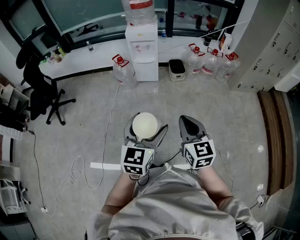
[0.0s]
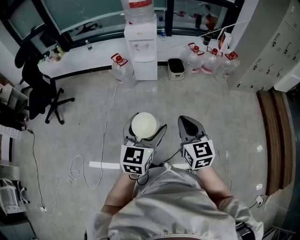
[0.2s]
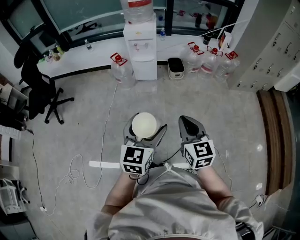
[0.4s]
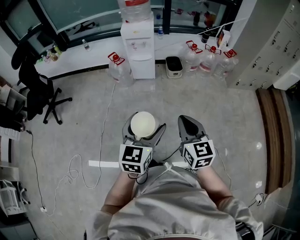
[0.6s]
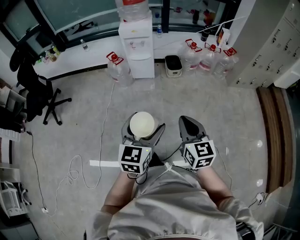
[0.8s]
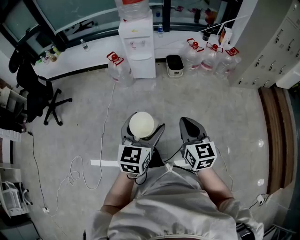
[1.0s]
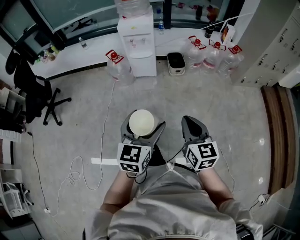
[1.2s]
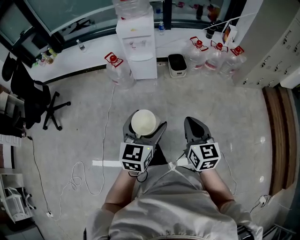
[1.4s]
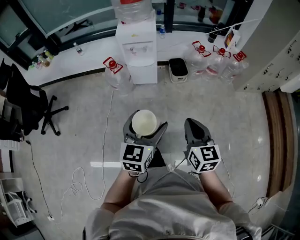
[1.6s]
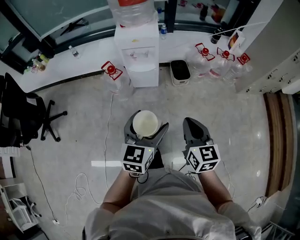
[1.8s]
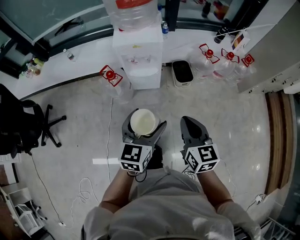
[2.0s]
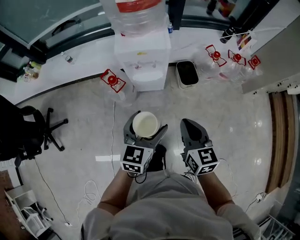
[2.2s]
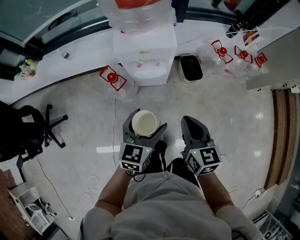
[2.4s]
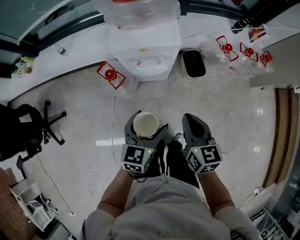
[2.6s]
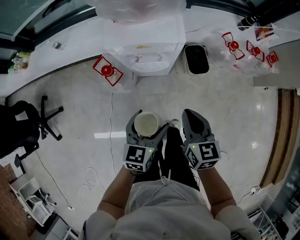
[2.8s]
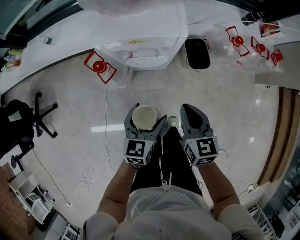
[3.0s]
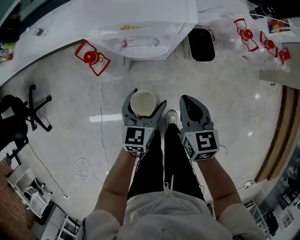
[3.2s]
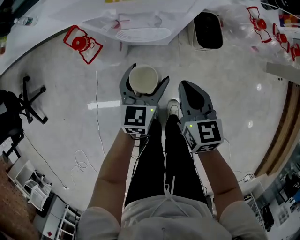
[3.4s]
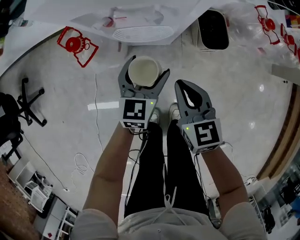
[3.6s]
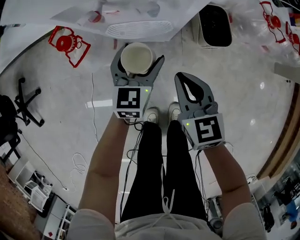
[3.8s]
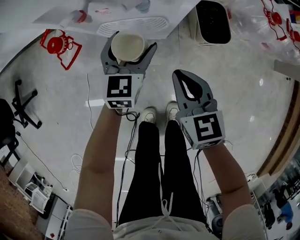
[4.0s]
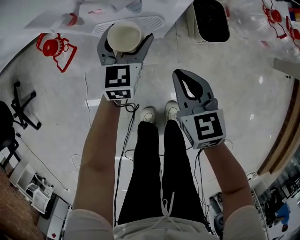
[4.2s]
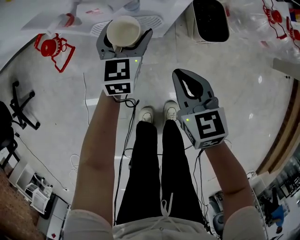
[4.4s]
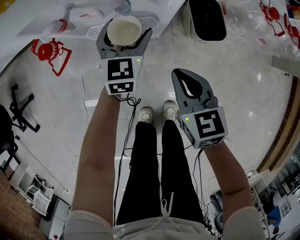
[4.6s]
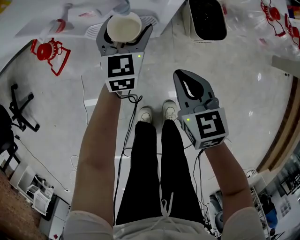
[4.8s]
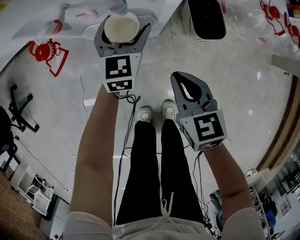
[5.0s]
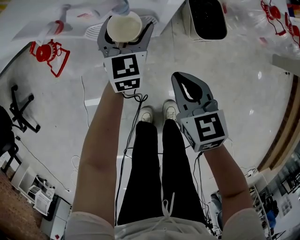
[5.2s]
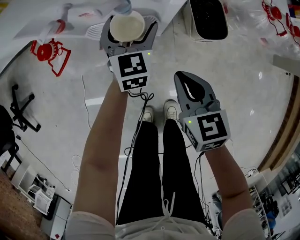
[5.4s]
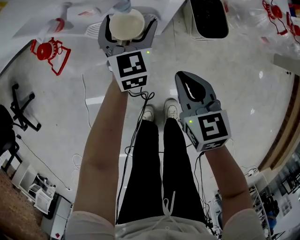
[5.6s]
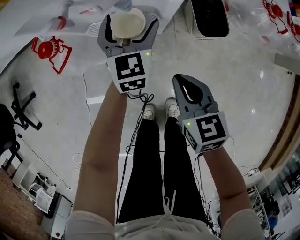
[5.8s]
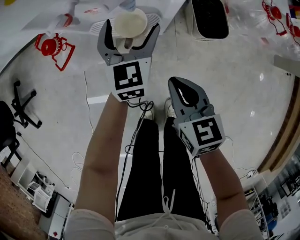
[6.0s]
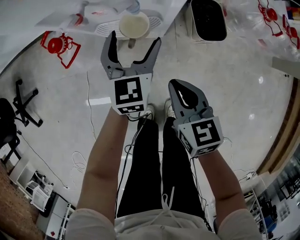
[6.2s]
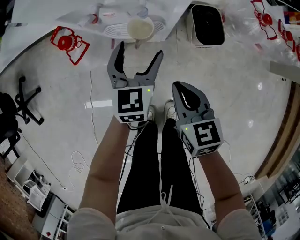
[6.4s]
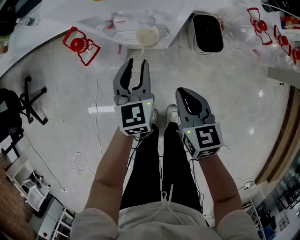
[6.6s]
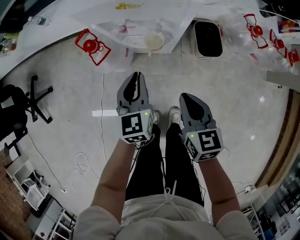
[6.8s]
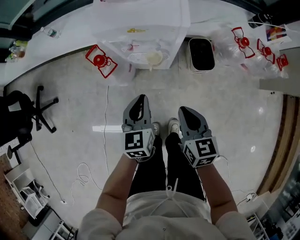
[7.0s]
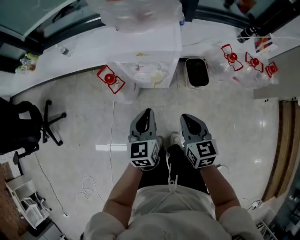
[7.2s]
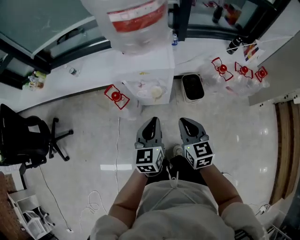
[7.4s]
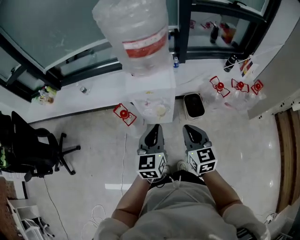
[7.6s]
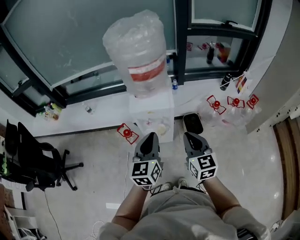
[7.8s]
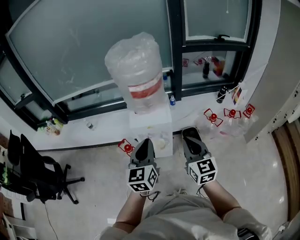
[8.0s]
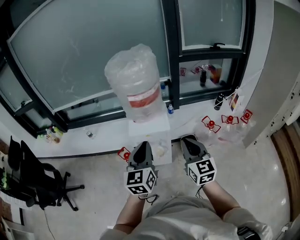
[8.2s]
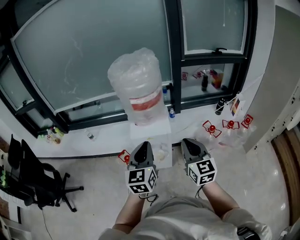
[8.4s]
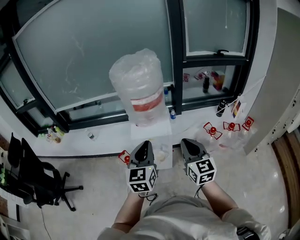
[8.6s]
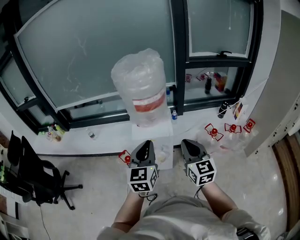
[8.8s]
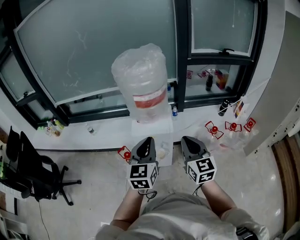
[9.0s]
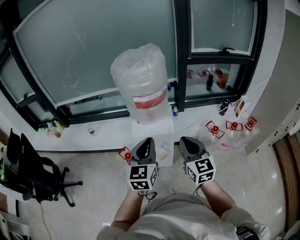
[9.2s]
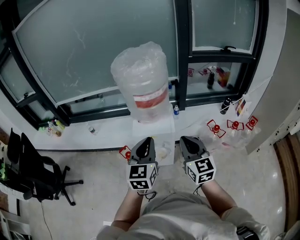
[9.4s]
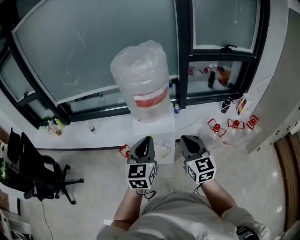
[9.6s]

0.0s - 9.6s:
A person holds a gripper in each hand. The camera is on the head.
0.0s - 1.6s: Both grippers move forward, approximately 20 cm.
1.6s - 3.2s: The two grippers travel together, forward, some 40 cm. The two grippers go approximately 25 cm downward.
3.2s - 4.8s: The left gripper goes approximately 25 cm forward and downward; the right gripper moves downward, about 15 cm.
4.8s - 6.4s: The right gripper heads upward, covering some 5 cm. Meanwhile the left gripper is displaced backward and upward by about 15 cm.
6.4s - 8.0s: Both grippers move upward, approximately 50 cm. The right gripper tilts its fingers some 30 degrees upward. Meanwhile the left gripper turns by some 20 degrees, and closes its fingers.
8.0s - 9.6s: Both grippers travel together forward, some 5 cm.

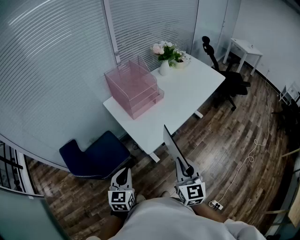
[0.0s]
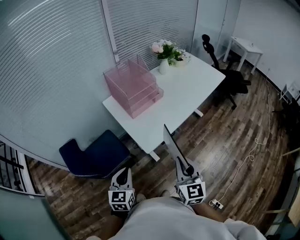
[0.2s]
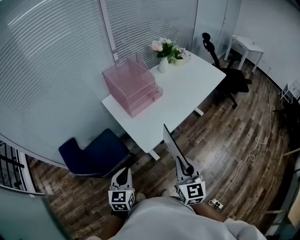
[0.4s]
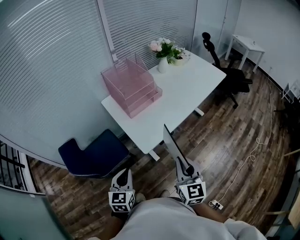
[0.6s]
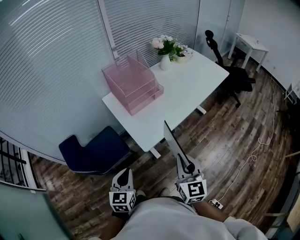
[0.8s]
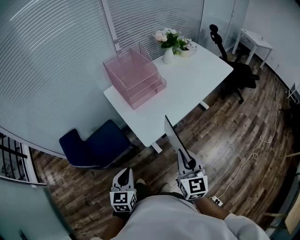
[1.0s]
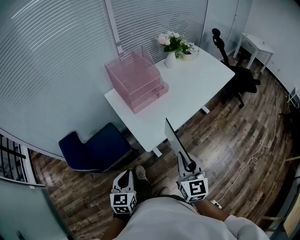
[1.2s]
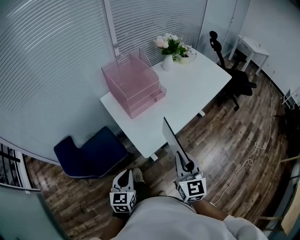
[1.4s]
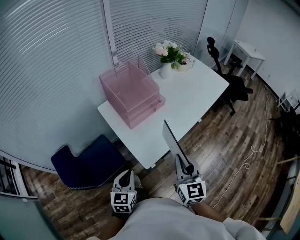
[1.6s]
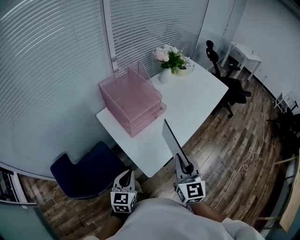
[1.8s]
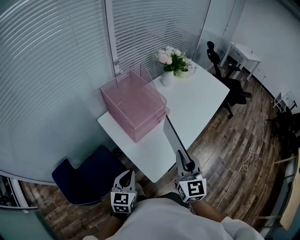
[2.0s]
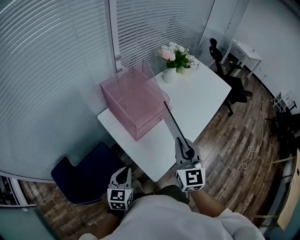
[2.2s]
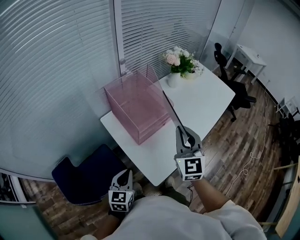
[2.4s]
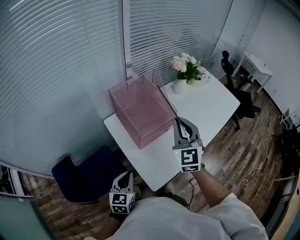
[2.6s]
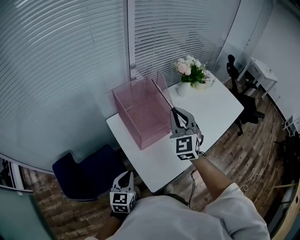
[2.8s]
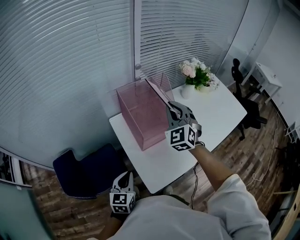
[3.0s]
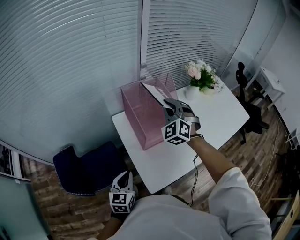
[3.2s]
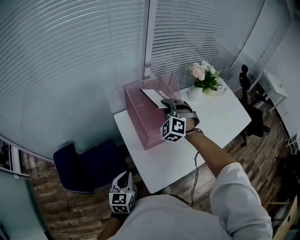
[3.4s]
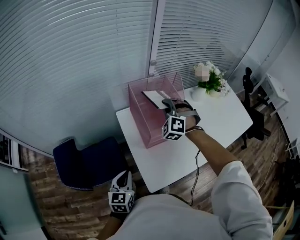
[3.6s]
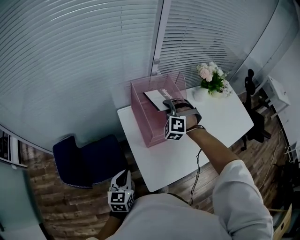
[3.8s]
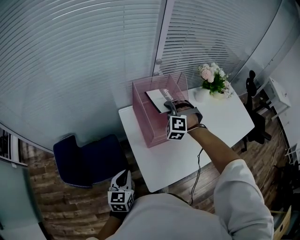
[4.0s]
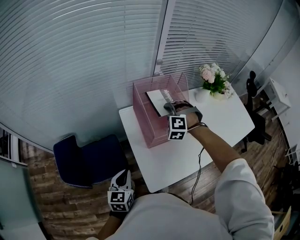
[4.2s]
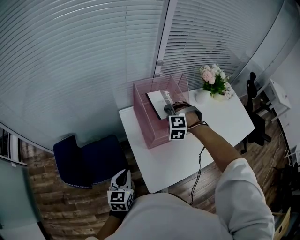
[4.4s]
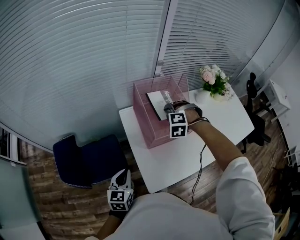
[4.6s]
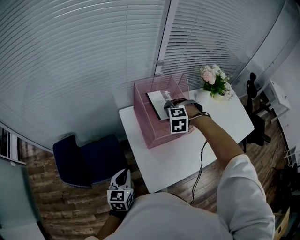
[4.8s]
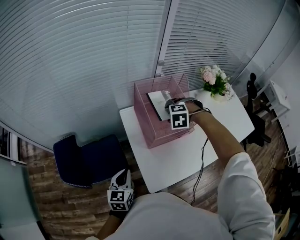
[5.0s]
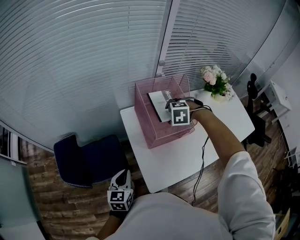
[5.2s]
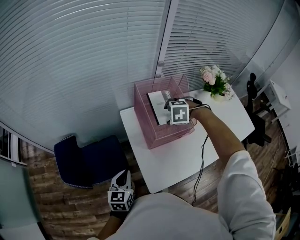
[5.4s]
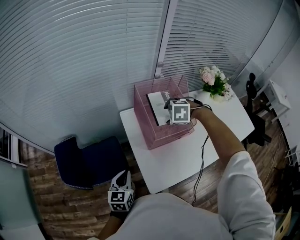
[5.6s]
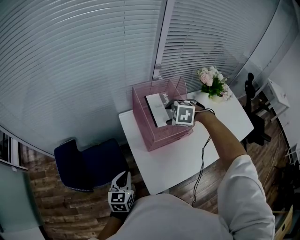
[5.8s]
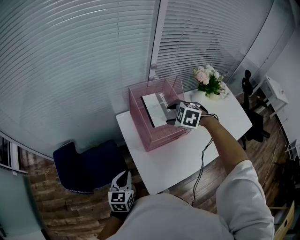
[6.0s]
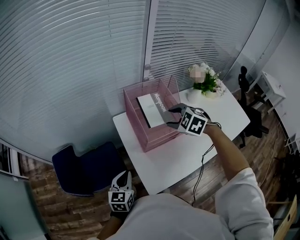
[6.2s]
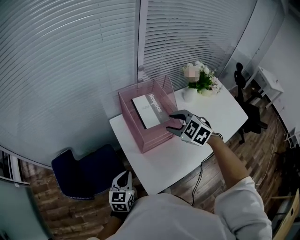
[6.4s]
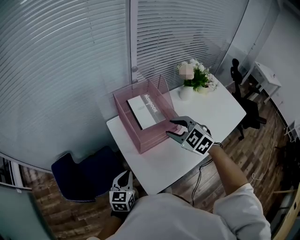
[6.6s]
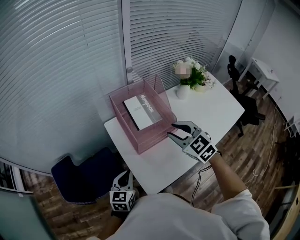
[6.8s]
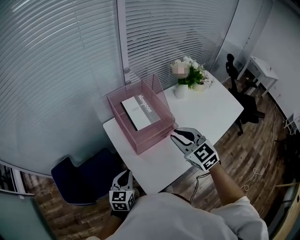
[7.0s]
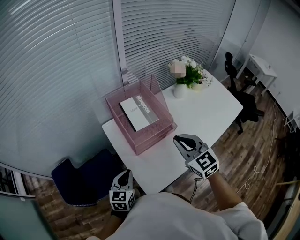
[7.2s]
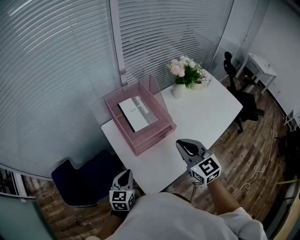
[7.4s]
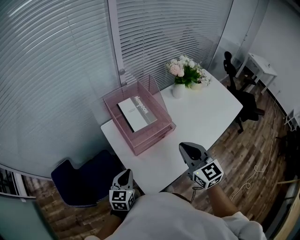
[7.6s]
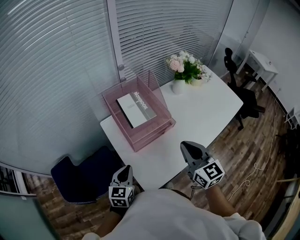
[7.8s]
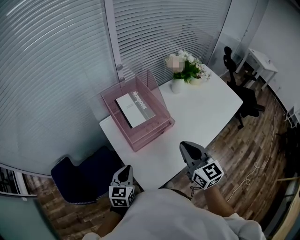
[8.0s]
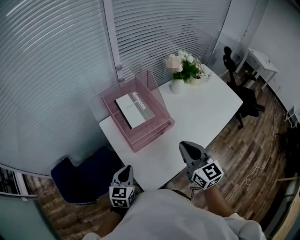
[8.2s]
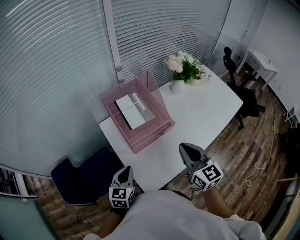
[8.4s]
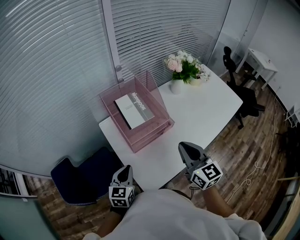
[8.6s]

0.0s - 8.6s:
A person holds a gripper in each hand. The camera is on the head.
0.0s - 1.4s: The right gripper travels forward by about 10 cm; the left gripper travels forward and downward by some 10 cm.
1.4s - 2.8s: The right gripper is displaced forward by about 35 cm, and rotates about 30 degrees; the left gripper goes some 20 cm forward.
2.8s - 4.4s: The left gripper ends up approximately 5 cm from where it was, while the right gripper moves downward, forward and to the left, roughly 20 cm, and points its fingers approximately 40 degrees further downward.
4.4s - 5.8s: The right gripper swivels some 30 degrees, and opens its fingers.
5.8s - 7.2s: The left gripper is displaced to the right by some 10 cm; the right gripper travels backward, upward and to the right by approximately 20 cm, tilts its fingers roughly 50 degrees upward, and closes up.
7.2s - 8.6s: The right gripper shifts by roughly 5 cm, and rotates about 20 degrees.

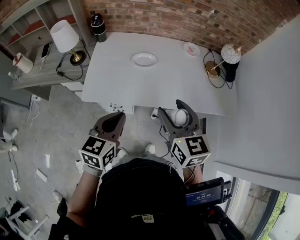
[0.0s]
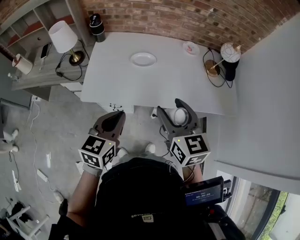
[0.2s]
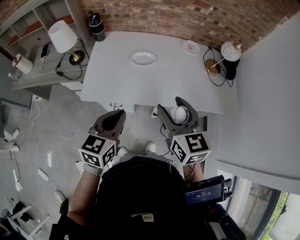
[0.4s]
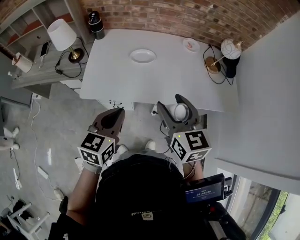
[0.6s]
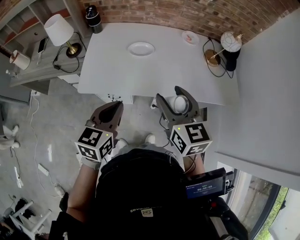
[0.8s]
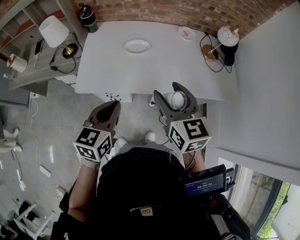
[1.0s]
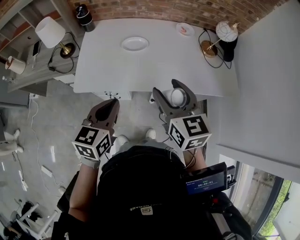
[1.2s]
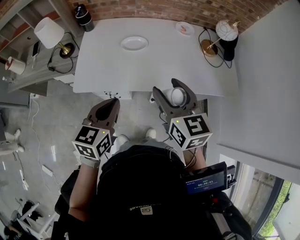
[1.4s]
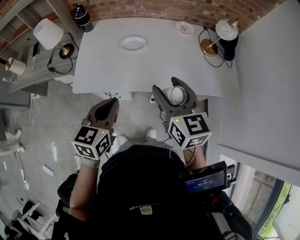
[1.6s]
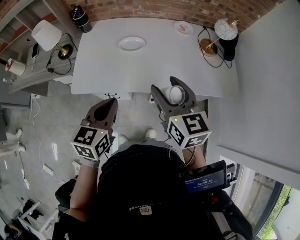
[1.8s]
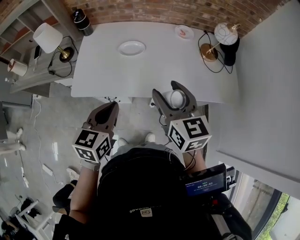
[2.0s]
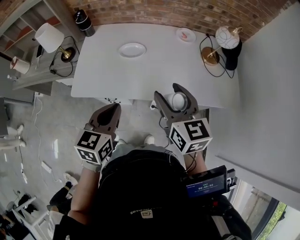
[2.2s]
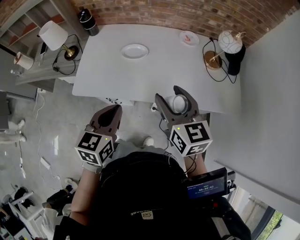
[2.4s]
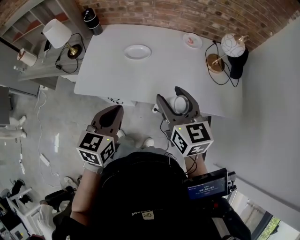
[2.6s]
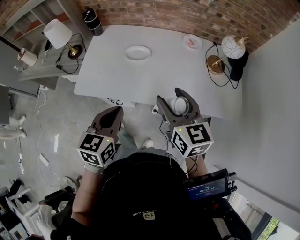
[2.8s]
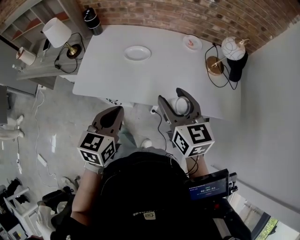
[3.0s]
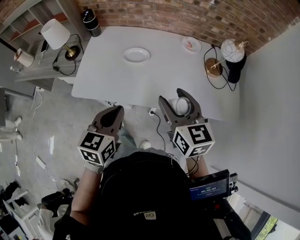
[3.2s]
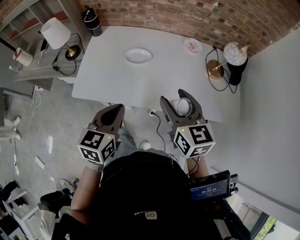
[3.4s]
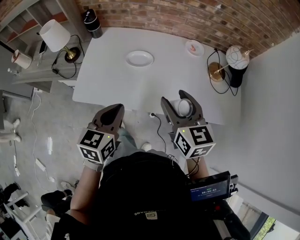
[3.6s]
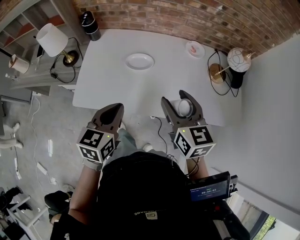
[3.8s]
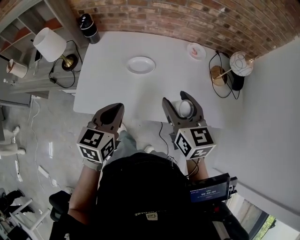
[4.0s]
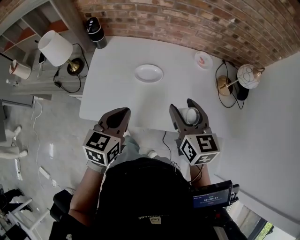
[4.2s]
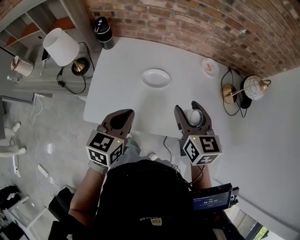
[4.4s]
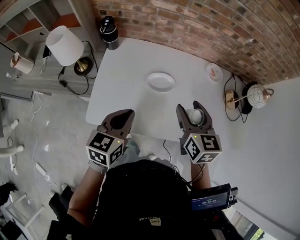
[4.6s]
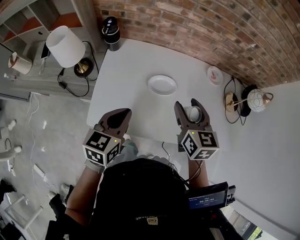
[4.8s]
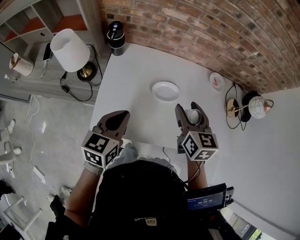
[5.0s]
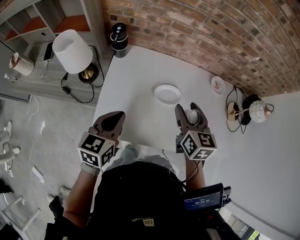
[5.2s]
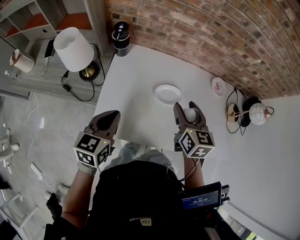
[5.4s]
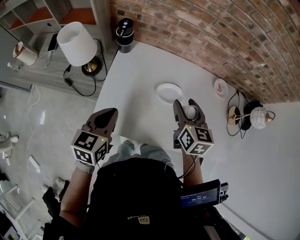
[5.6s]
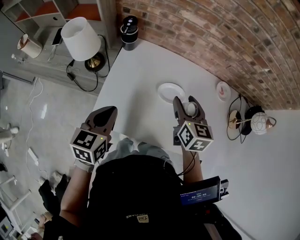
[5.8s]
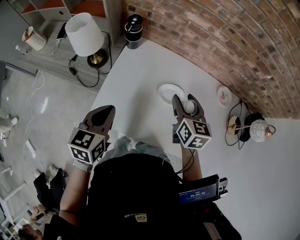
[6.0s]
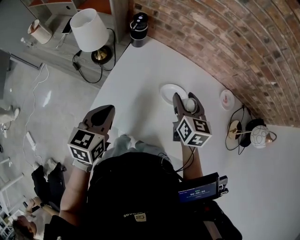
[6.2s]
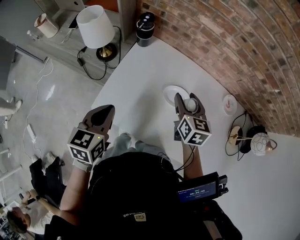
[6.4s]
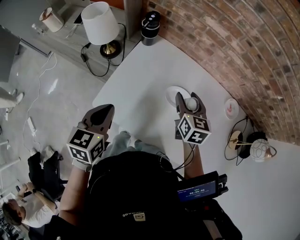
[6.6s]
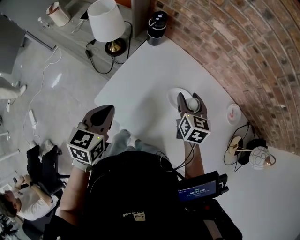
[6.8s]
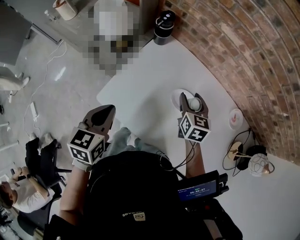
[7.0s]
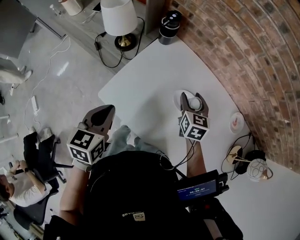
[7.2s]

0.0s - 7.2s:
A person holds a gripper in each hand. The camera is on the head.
0.0s - 1.4s: There are only small adjustments of the grippers.
1.4s - 2.8s: Both grippers travel together to the right, about 5 cm.
2.8s - 4.4s: Both grippers travel together forward and to the left, roughly 20 cm.
4.4s - 5.8s: The right gripper is displaced forward and to the left by roughly 15 cm. Meanwhile the left gripper travels to the left by approximately 15 cm.
5.8s - 7.2s: The left gripper moves backward, roughly 5 cm, and rotates about 20 degrees, while the right gripper travels downward and forward by about 10 cm, and turns by approximately 20 degrees.
